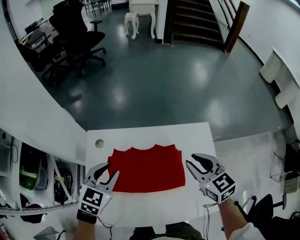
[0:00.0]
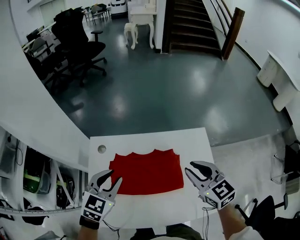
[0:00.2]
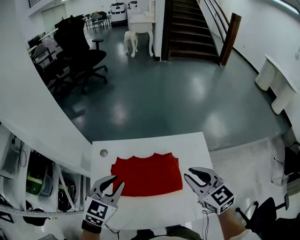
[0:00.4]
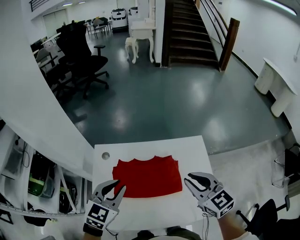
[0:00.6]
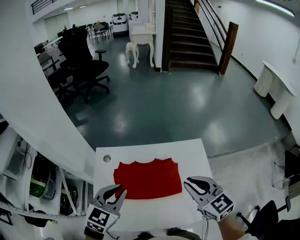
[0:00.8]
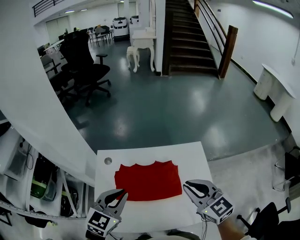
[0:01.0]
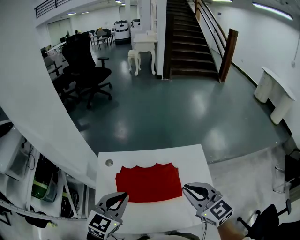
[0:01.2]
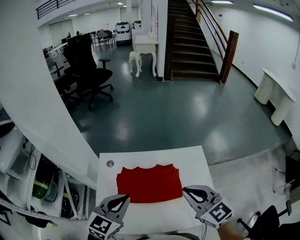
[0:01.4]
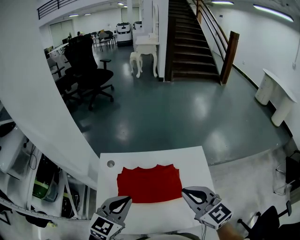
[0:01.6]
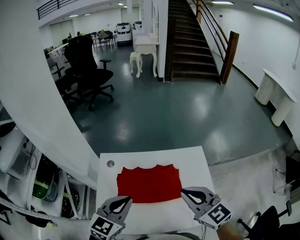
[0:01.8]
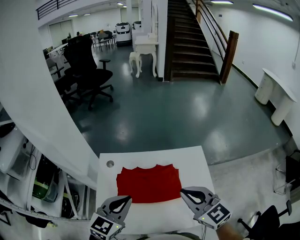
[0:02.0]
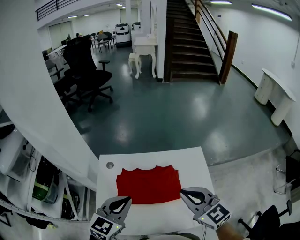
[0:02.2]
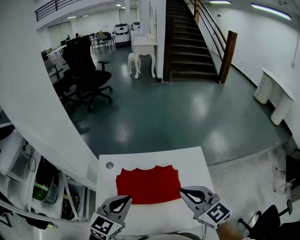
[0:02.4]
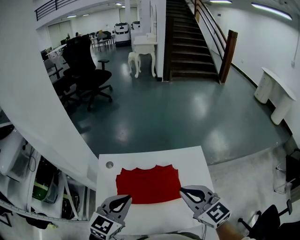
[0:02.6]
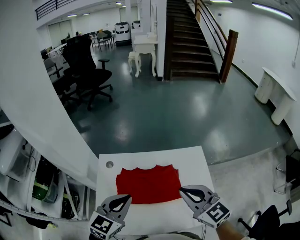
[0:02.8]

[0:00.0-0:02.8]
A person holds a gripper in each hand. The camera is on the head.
0.0 to 1.4 s: The grippers both shift backward and upward by approximately 20 cm. The left gripper closes up. The right gripper closes up.
1.4 to 2.8 s: Both grippers stay about where they are.

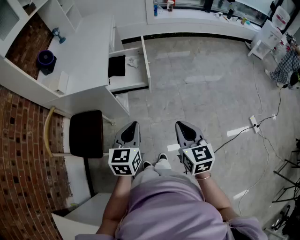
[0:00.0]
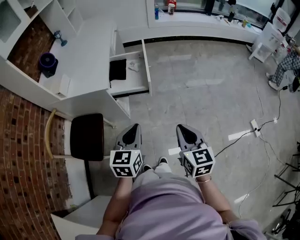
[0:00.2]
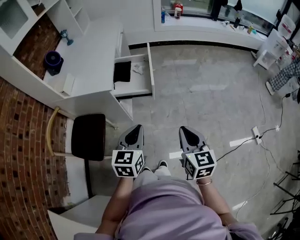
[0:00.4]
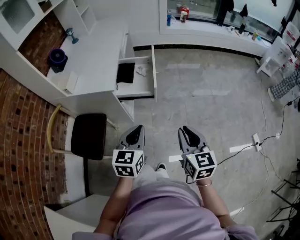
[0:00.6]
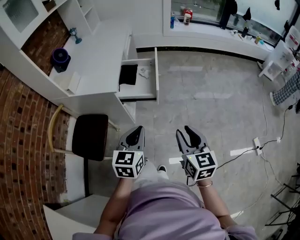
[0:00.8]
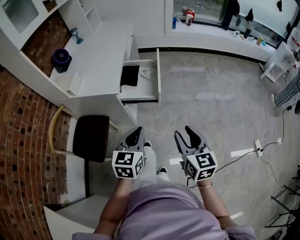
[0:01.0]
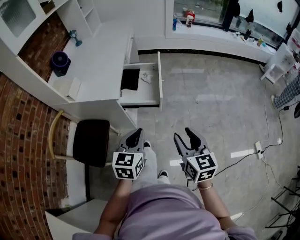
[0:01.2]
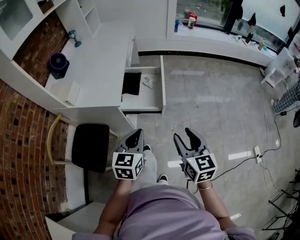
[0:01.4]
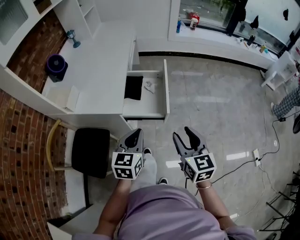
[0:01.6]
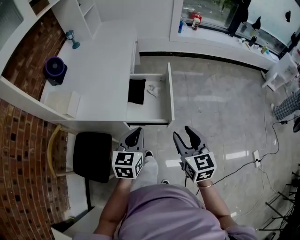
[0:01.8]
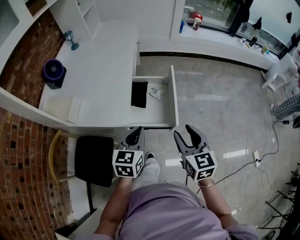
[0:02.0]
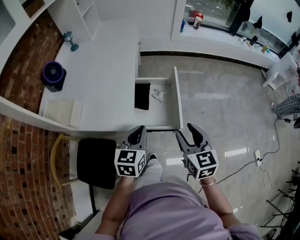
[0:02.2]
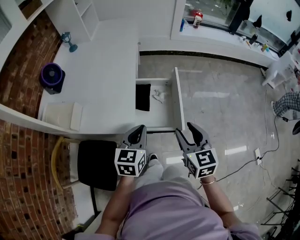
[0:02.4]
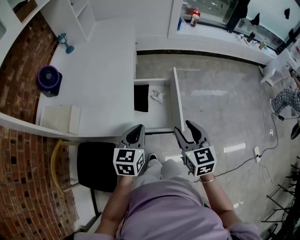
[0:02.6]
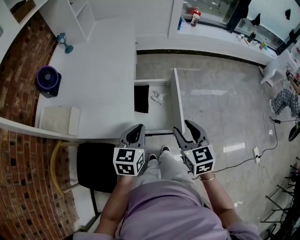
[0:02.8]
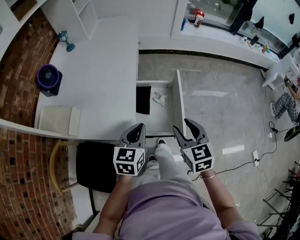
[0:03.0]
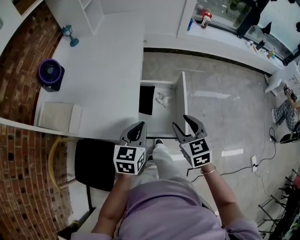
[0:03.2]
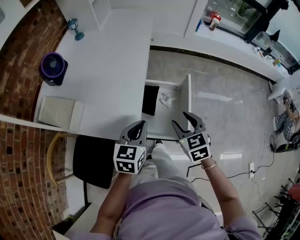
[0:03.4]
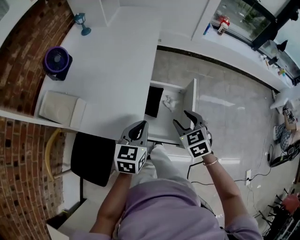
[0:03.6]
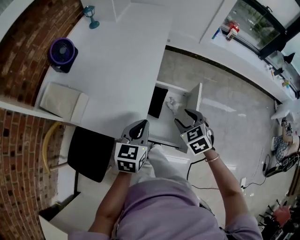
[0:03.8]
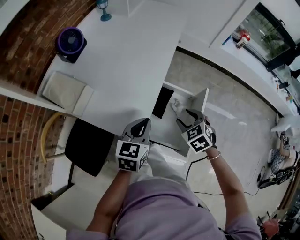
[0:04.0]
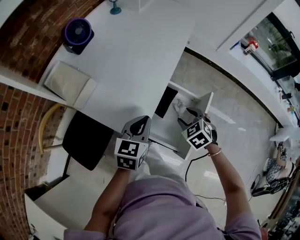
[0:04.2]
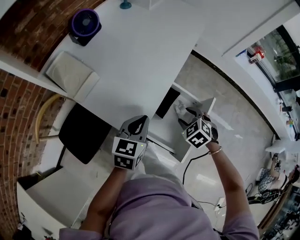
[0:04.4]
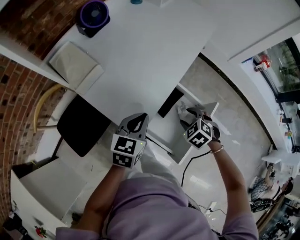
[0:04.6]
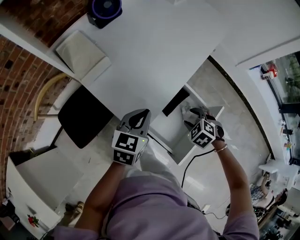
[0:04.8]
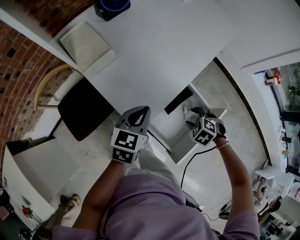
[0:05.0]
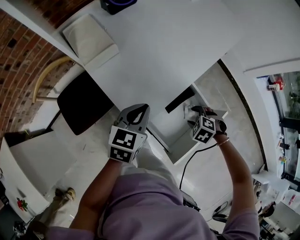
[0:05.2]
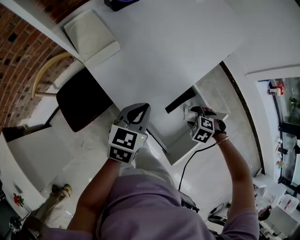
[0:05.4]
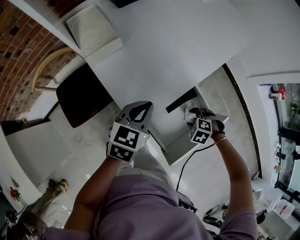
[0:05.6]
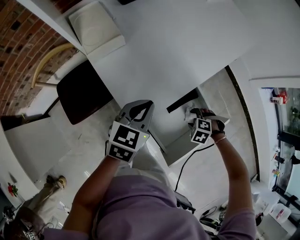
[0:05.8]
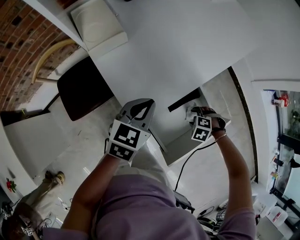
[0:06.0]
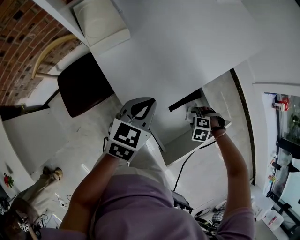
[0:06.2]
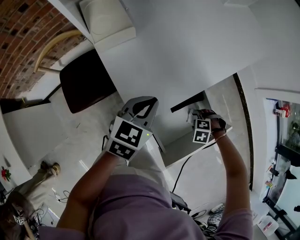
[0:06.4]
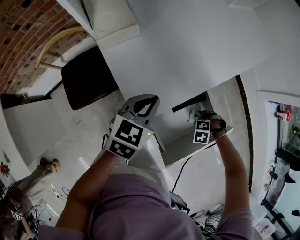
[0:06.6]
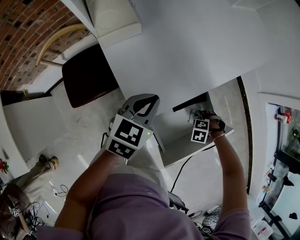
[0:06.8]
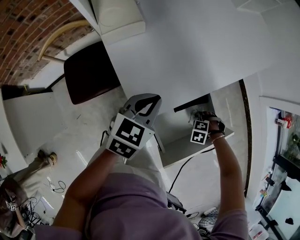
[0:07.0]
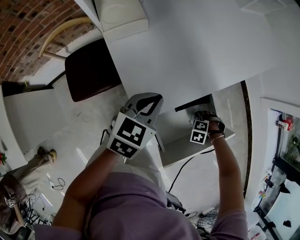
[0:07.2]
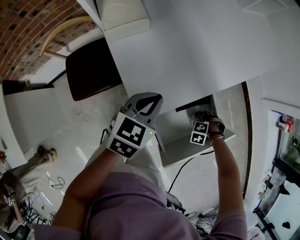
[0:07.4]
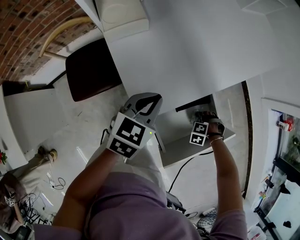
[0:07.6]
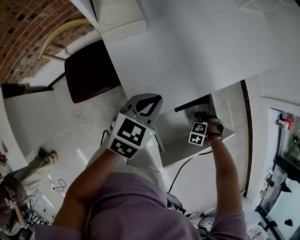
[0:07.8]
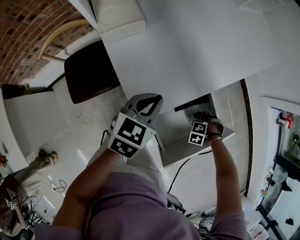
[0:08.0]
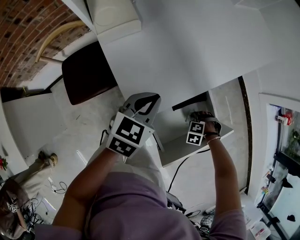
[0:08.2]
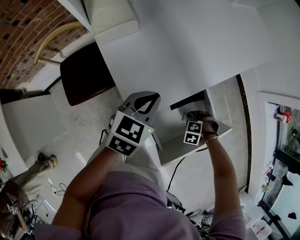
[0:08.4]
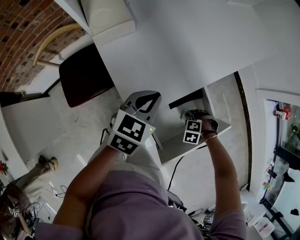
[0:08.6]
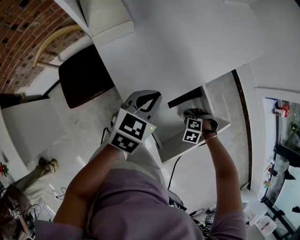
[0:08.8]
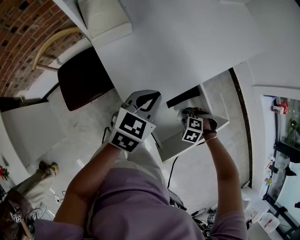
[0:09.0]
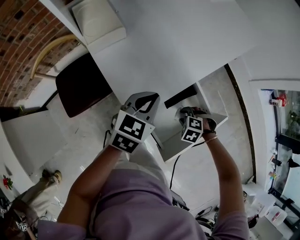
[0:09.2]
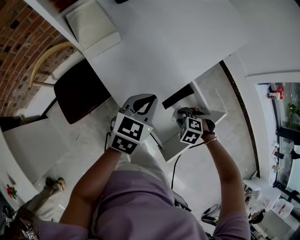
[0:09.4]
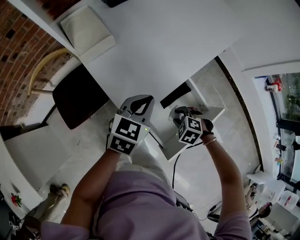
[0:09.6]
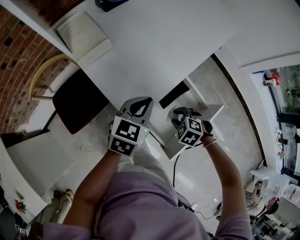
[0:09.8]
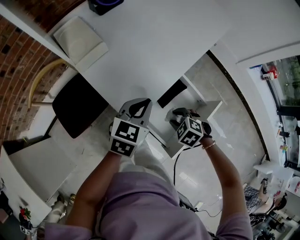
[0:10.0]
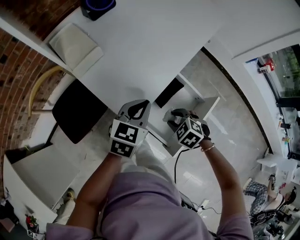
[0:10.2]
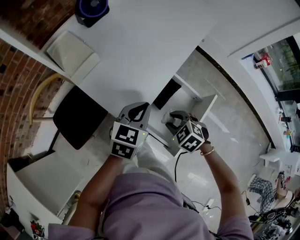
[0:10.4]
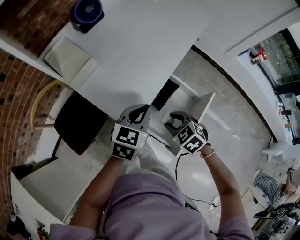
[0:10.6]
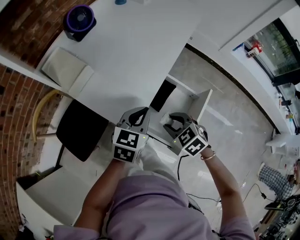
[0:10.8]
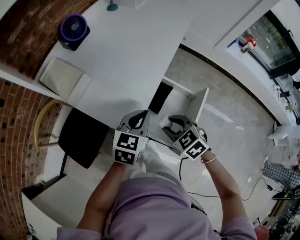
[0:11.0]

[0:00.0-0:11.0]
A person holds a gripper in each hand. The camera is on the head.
0.0 to 1.6 s: The two grippers go approximately 15 cm forward. The right gripper opens its fingers.
1.6 to 3.2 s: The grippers both shift forward and to the left by roughly 20 cm. The right gripper turns by approximately 20 degrees.
3.2 to 4.8 s: The right gripper shifts roughly 15 cm downward, and tips its fingers downward by roughly 40 degrees, while the left gripper moves about 10 cm, and changes its angle by approximately 30 degrees.
4.8 to 6.2 s: The right gripper moves downward, roughly 10 cm, and rotates some 40 degrees.
6.2 to 7.8 s: The right gripper shifts about 5 cm downward.
7.8 to 9.4 s: The right gripper is displaced upward by approximately 10 cm, and changes its angle by roughly 30 degrees.
9.4 to 11.0 s: The right gripper moves upward, approximately 15 cm, and twists approximately 50 degrees clockwise, seen from behind.

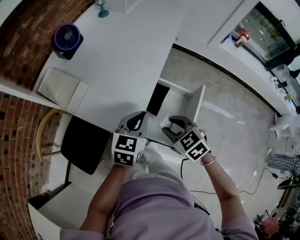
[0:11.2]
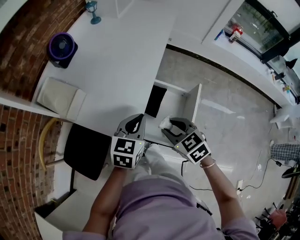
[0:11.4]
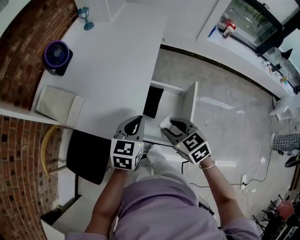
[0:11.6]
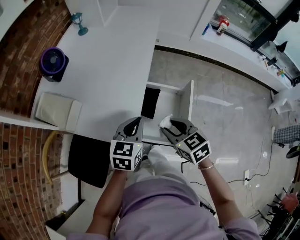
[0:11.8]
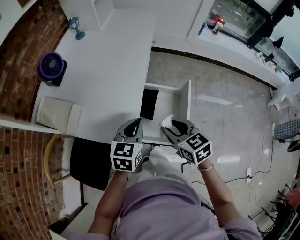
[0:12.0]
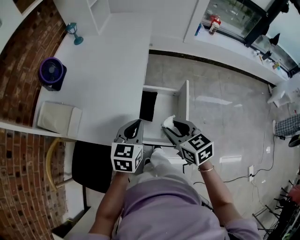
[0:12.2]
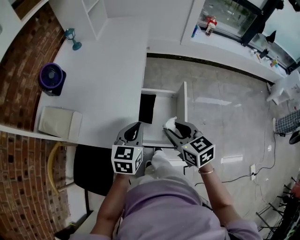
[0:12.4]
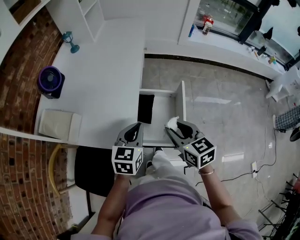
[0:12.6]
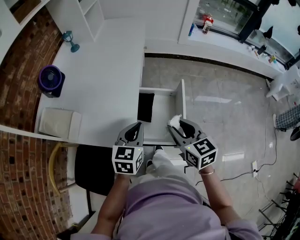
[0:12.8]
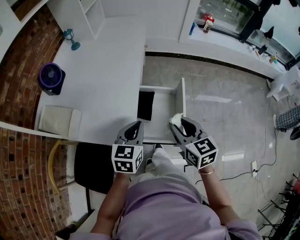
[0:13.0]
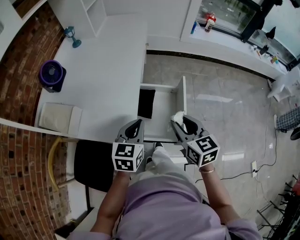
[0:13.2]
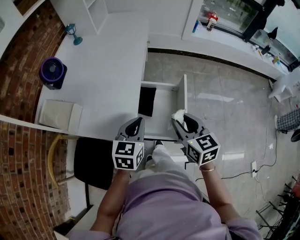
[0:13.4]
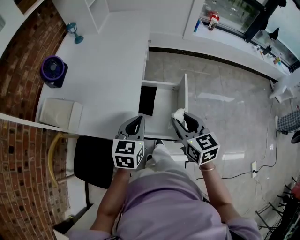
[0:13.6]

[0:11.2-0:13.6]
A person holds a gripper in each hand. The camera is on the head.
11.2 to 12.4 s: The right gripper is displaced upward by some 5 cm, and rotates roughly 40 degrees.
12.4 to 13.6 s: There are only small adjustments of the grippers.

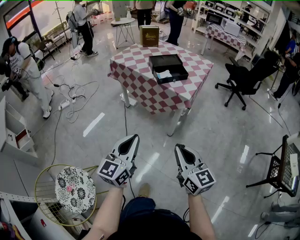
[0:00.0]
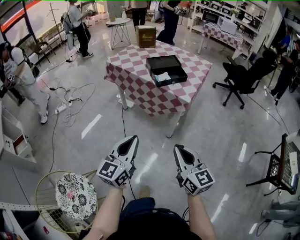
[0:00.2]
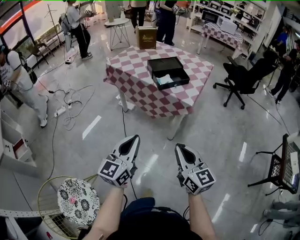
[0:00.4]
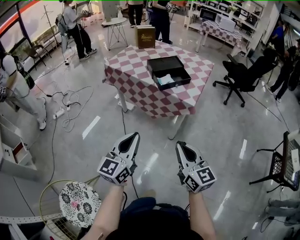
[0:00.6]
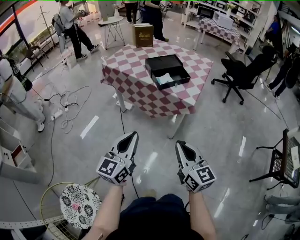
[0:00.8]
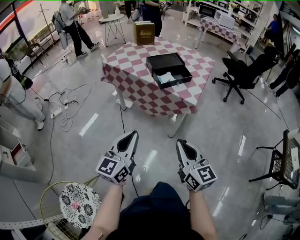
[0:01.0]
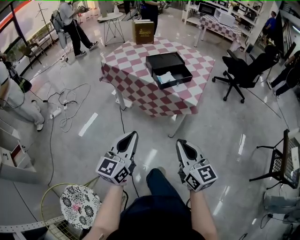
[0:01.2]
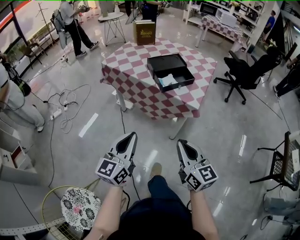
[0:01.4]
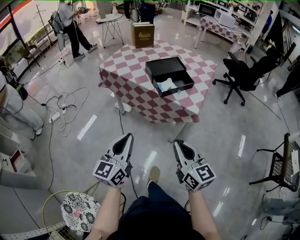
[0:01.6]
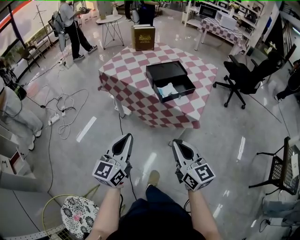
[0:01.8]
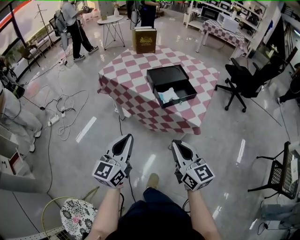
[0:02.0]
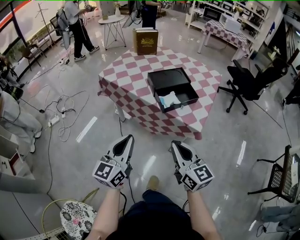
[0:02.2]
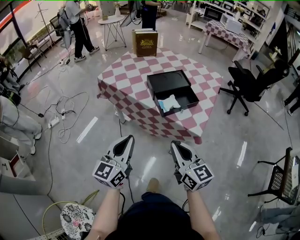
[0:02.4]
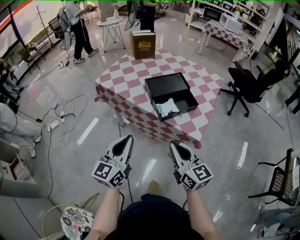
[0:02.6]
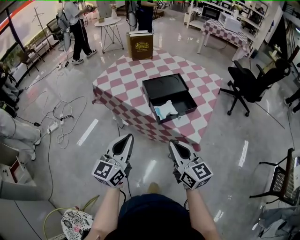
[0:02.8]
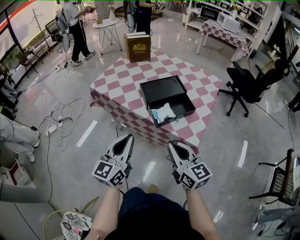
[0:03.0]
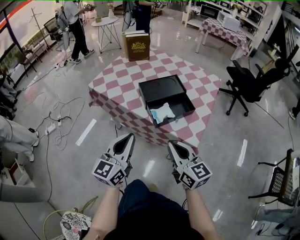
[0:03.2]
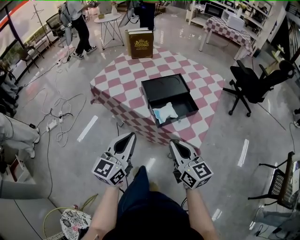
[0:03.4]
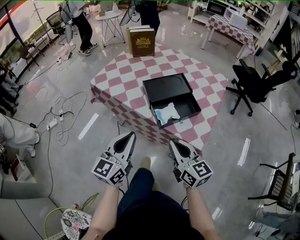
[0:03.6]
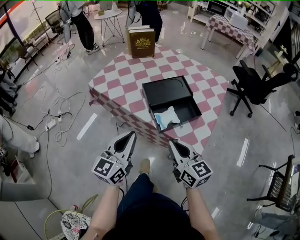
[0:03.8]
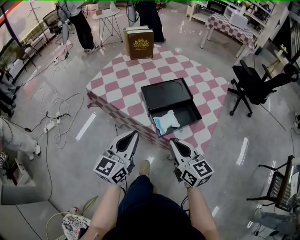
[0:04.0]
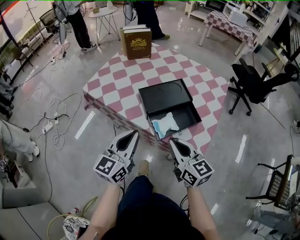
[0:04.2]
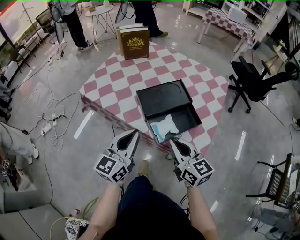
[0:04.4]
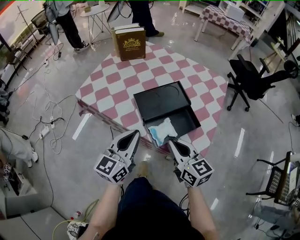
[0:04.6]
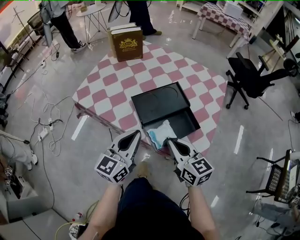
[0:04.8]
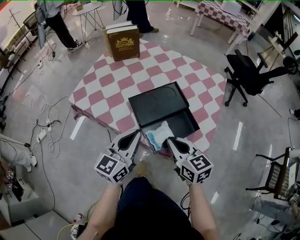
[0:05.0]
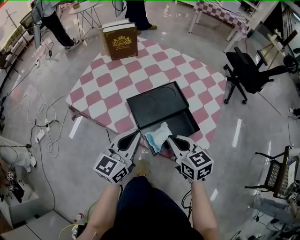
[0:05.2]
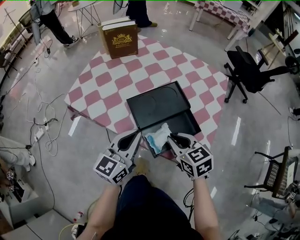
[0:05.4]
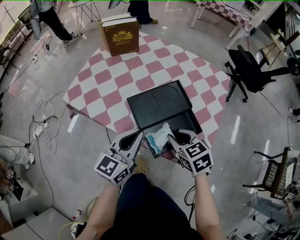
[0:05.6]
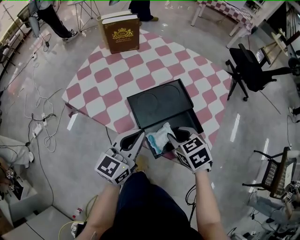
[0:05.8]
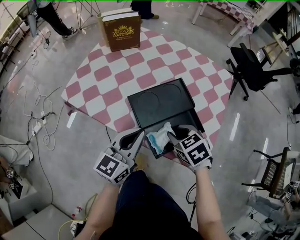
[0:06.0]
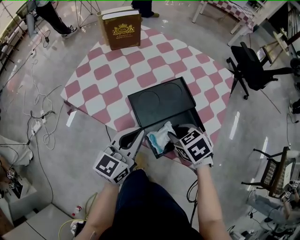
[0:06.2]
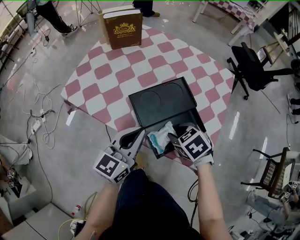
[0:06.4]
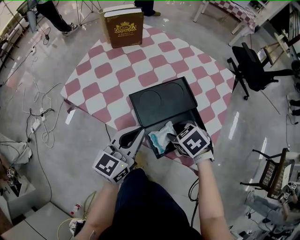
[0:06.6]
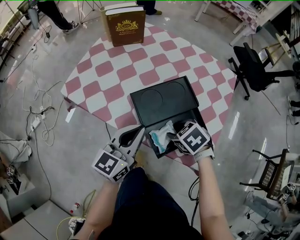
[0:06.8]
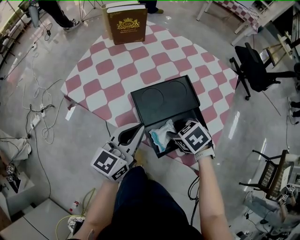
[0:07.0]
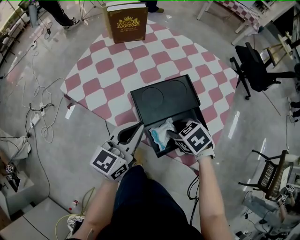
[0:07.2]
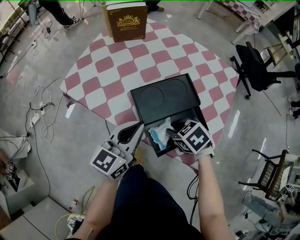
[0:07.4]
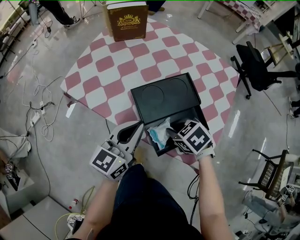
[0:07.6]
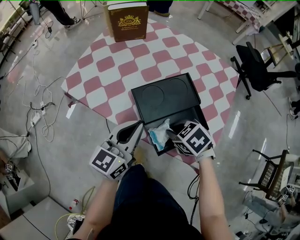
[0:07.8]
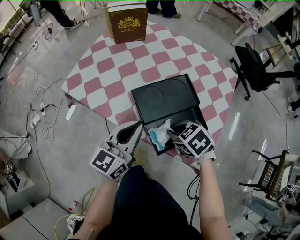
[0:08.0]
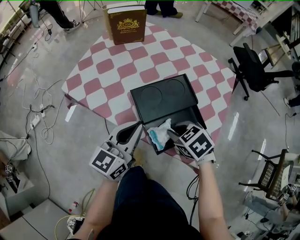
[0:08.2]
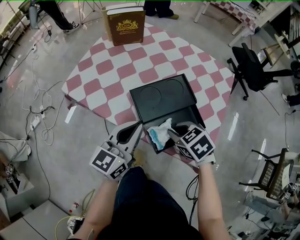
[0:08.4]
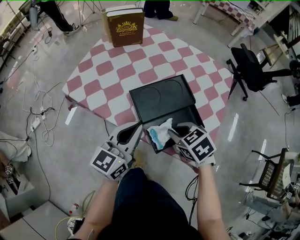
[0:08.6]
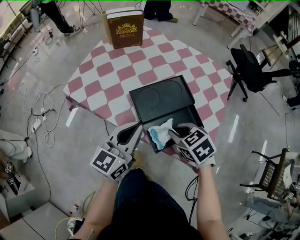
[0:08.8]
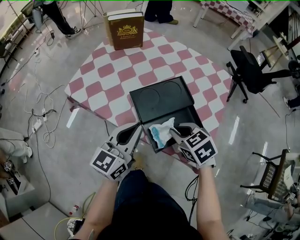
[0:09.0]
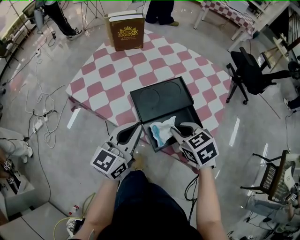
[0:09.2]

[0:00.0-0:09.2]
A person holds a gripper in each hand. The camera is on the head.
0.0 to 1.6 s: The right gripper moves forward, some 20 cm. The left gripper moves forward and to the left, roughly 20 cm.
1.6 to 3.0 s: The two grippers go roughly 20 cm forward.
3.0 to 4.6 s: Both grippers move forward, some 15 cm.
4.6 to 6.2 s: The left gripper heads forward, covering roughly 10 cm. Meanwhile the right gripper travels downward and forward by some 15 cm, points its fingers some 50 degrees further downward, and opens.
6.2 to 7.6 s: The right gripper opens and closes again.
7.6 to 9.2 s: The right gripper shifts roughly 10 cm upward, and changes its angle by approximately 20 degrees.
